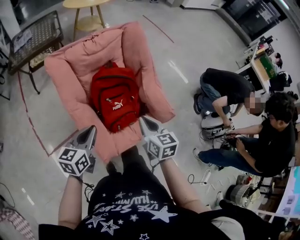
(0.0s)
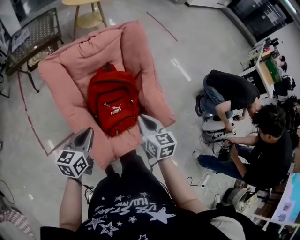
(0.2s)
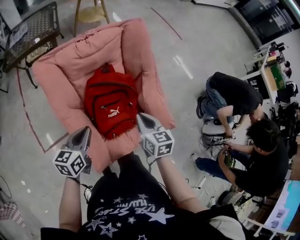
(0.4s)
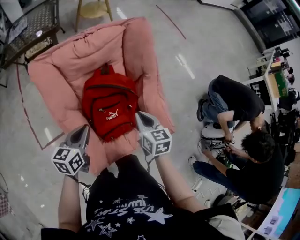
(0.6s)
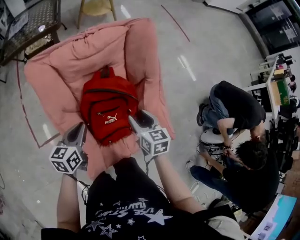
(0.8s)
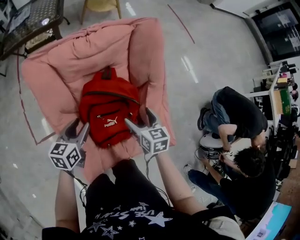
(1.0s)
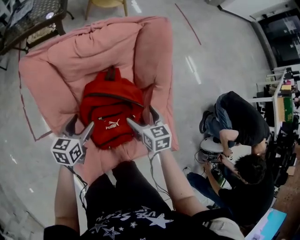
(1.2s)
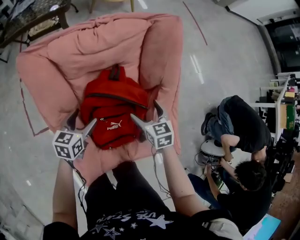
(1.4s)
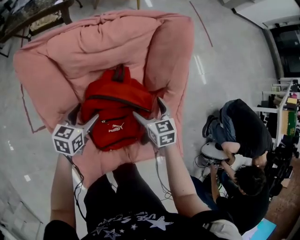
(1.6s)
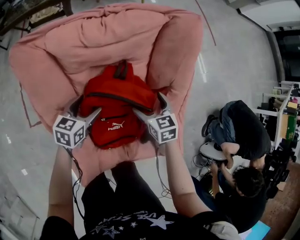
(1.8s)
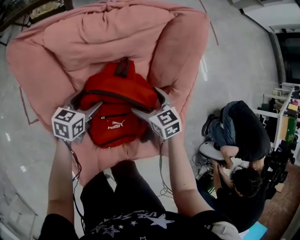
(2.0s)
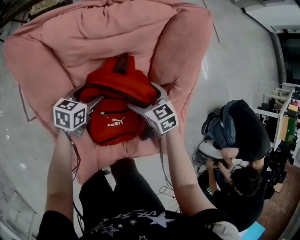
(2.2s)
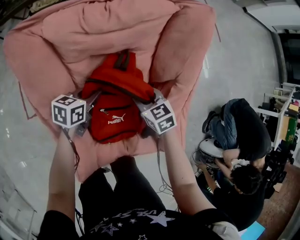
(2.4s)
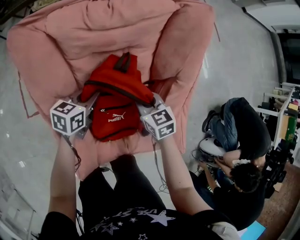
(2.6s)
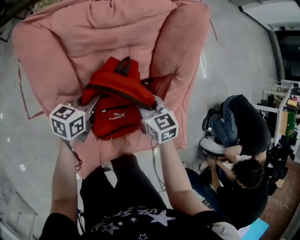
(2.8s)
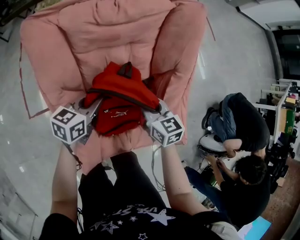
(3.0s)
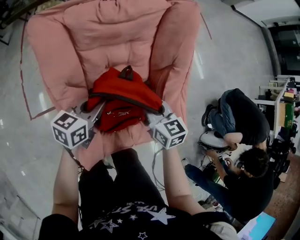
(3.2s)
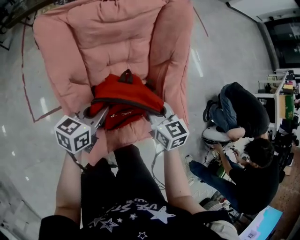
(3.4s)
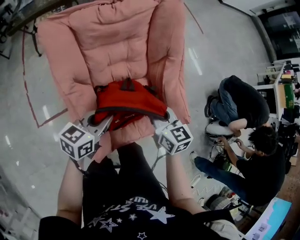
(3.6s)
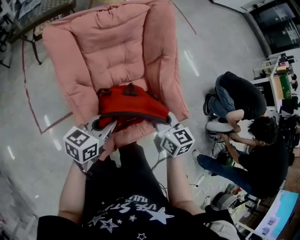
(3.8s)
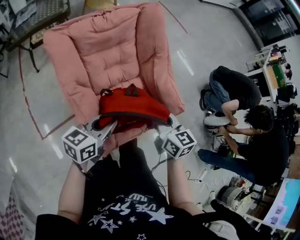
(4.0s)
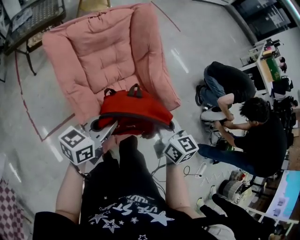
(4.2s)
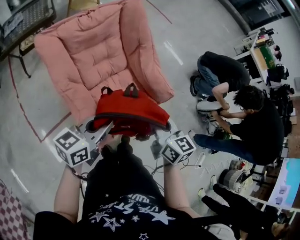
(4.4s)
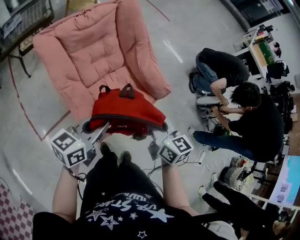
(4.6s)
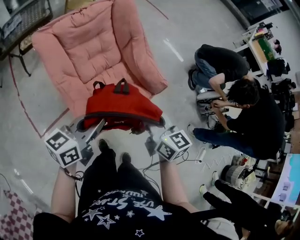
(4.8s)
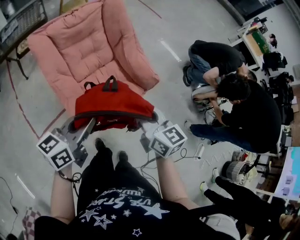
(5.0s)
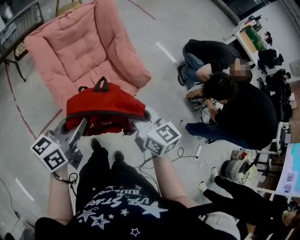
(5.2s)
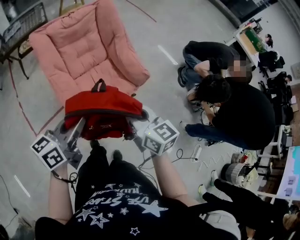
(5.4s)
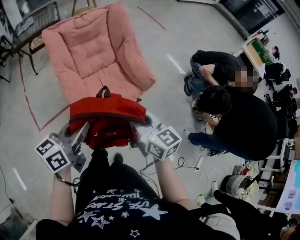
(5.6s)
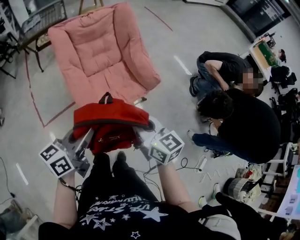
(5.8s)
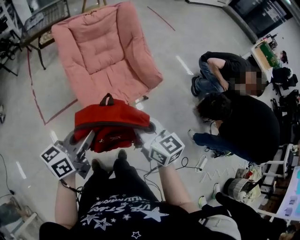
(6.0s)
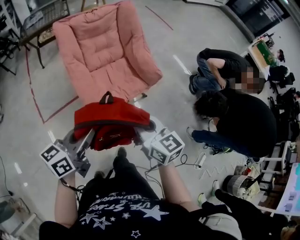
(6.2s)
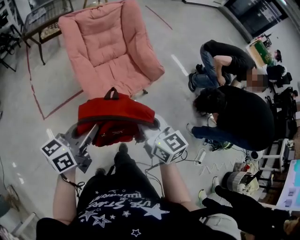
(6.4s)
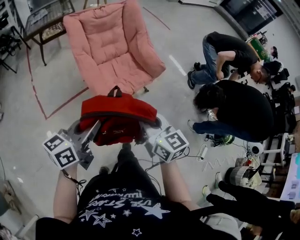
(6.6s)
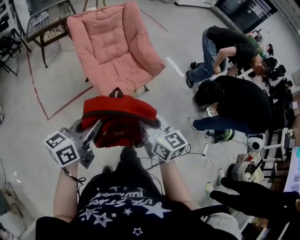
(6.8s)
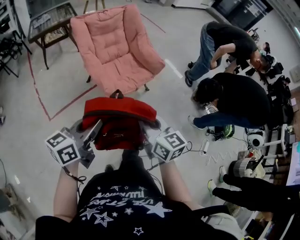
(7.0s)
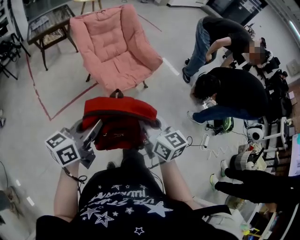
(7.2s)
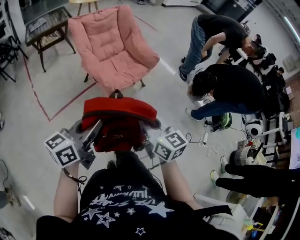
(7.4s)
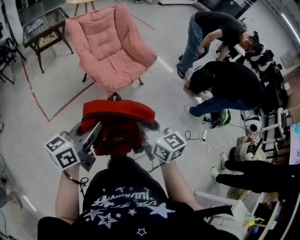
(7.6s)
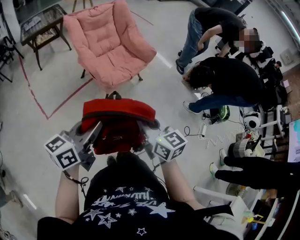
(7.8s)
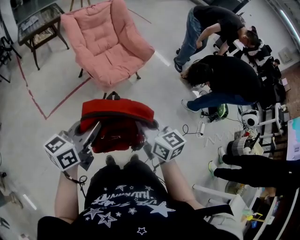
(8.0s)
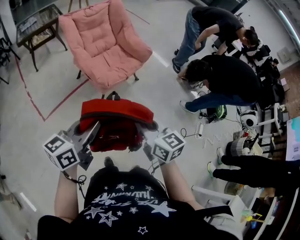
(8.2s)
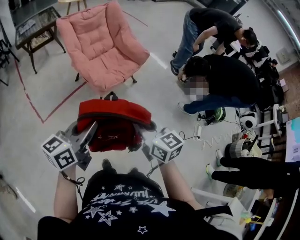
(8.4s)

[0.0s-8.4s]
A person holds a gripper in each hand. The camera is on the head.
0.0s to 1.4s: Both grippers move forward and downward, approximately 30 cm. The right gripper rotates some 30 degrees, and opens, while the left gripper opens up.
1.4s to 2.8s: The right gripper shifts some 5 cm to the left, reaches approximately 10 cm downward, then returns, and closes. The left gripper reaches approximately 10 cm downward, then returns, and closes its fingers.
2.8s to 4.2s: The left gripper changes place by approximately 35 cm, and rotates some 30 degrees. Meanwhile the right gripper ends up some 40 cm from where it was, and swivels about 40 degrees.
4.2s to 5.6s: The right gripper heads backward and to the right, covering about 20 cm, while the left gripper travels backward, to the right and upward by roughly 20 cm.
5.6s to 7.0s: The right gripper heads backward, covering approximately 25 cm. Meanwhile the left gripper travels backward and to the left by some 25 cm.
7.0s to 8.4s: The two grippers go approximately 10 cm backward.

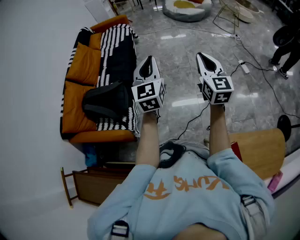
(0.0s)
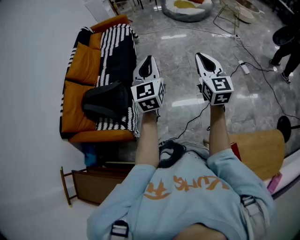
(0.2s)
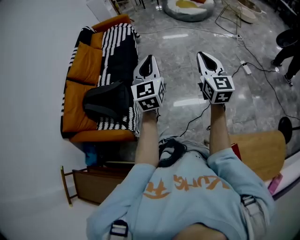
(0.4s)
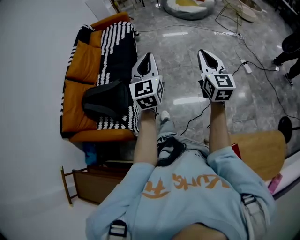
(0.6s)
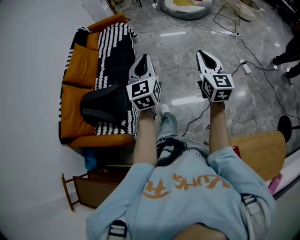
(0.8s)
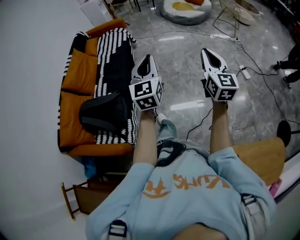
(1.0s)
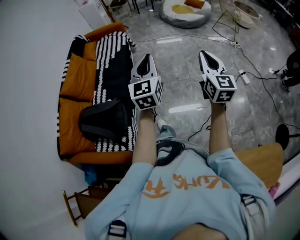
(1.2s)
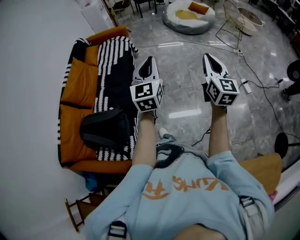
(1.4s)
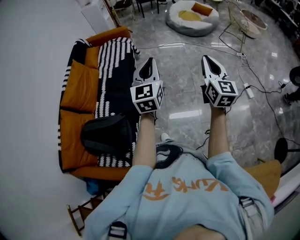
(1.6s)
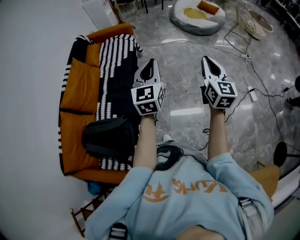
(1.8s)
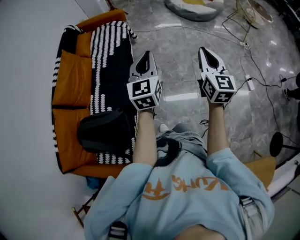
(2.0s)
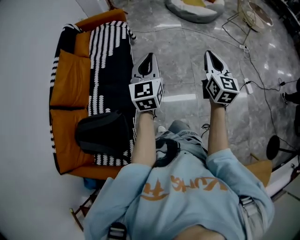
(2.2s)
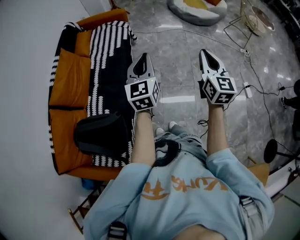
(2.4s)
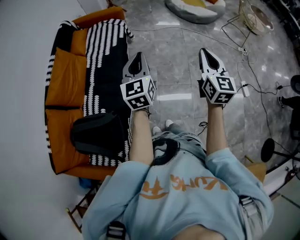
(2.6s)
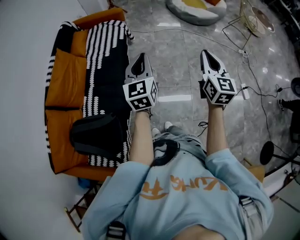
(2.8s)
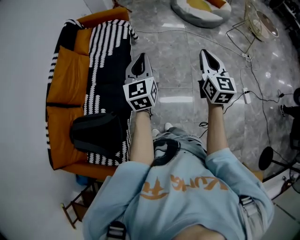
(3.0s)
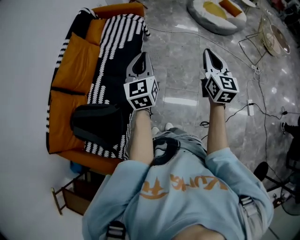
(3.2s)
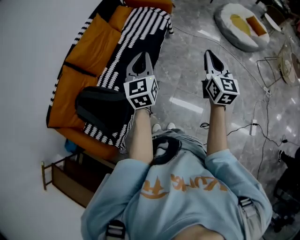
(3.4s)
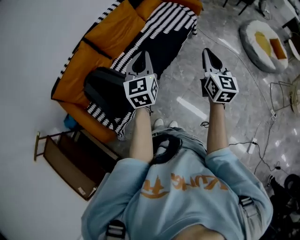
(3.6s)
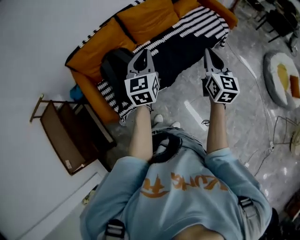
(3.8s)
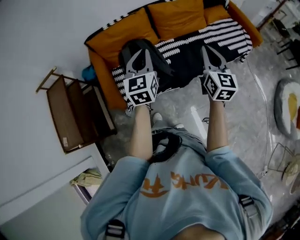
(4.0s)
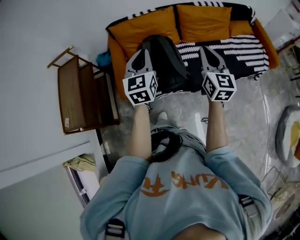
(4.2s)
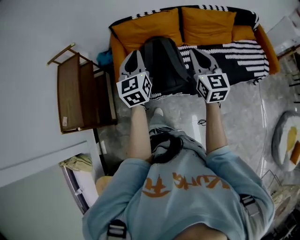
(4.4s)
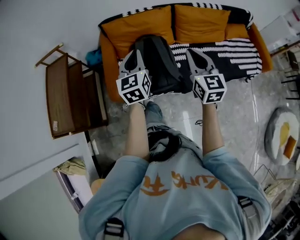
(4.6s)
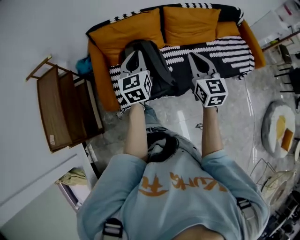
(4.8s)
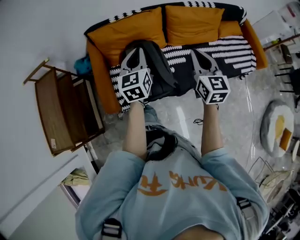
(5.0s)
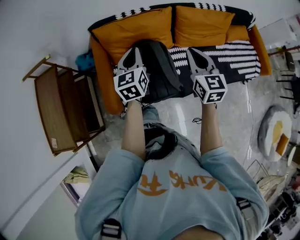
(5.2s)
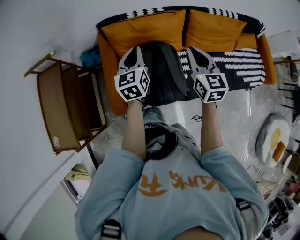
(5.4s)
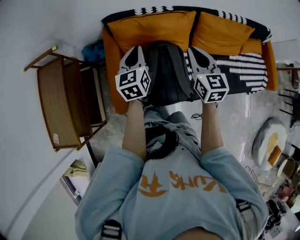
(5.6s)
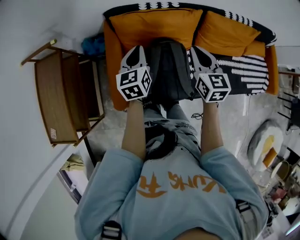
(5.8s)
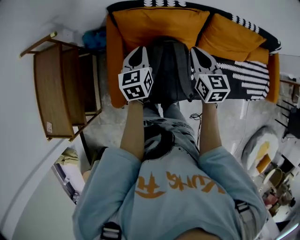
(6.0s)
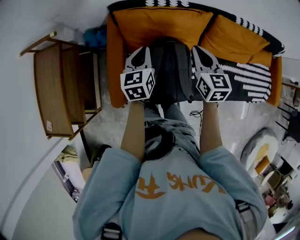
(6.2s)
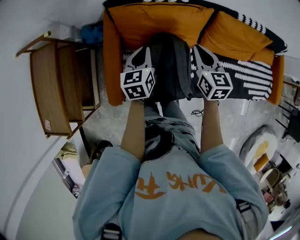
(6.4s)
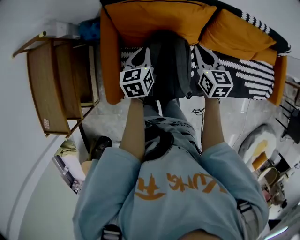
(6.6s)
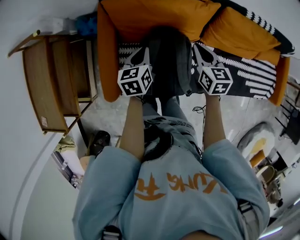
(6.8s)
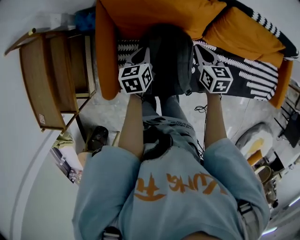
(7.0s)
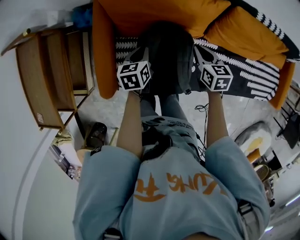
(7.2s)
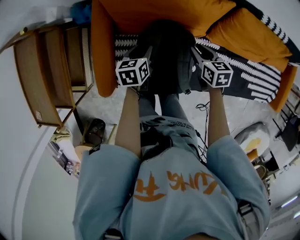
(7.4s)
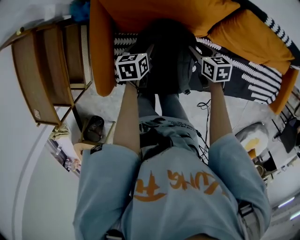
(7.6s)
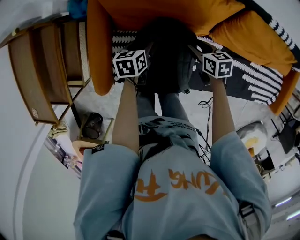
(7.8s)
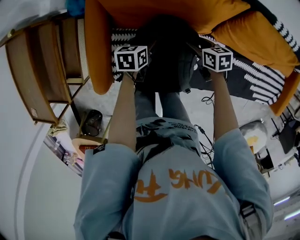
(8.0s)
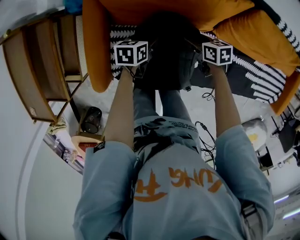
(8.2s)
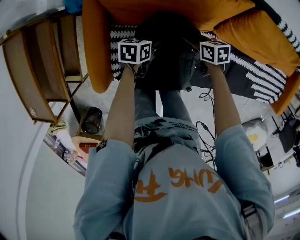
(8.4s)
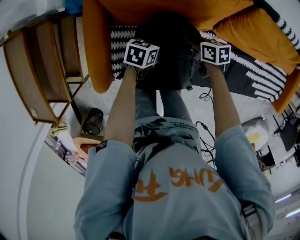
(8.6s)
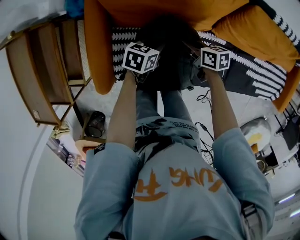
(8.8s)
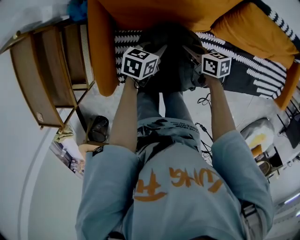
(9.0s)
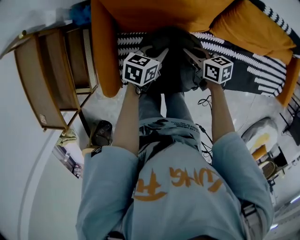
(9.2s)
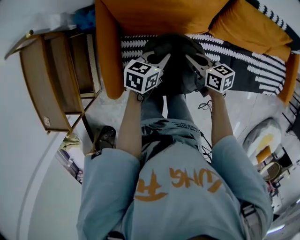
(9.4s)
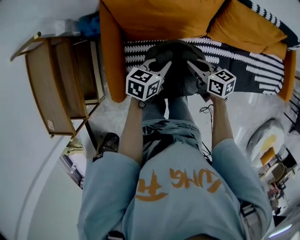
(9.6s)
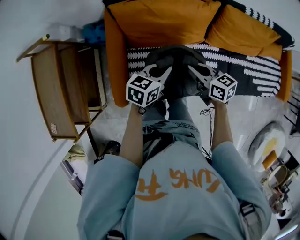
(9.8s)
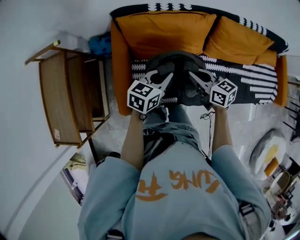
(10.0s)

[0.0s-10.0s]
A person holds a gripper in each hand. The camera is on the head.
0.0s to 1.4s: The two grippers go roughly 25 cm forward.
1.4s to 2.8s: Both grippers move forward, about 25 cm.
2.8s to 4.2s: The two grippers travel together, approximately 50 cm. The right gripper changes its angle by about 80 degrees; the left gripper rotates some 80 degrees.
4.2s to 5.8s: The right gripper shifts roughly 35 cm forward and to the left, and rotates some 20 degrees; the left gripper shifts about 35 cm forward, downward and to the left, and changes its angle by approximately 20 degrees.
5.8s to 7.2s: Both grippers move downward, approximately 25 cm. The right gripper rotates roughly 30 degrees. The left gripper rotates about 30 degrees.
7.2s to 8.6s: The grippers both shift downward by some 15 cm. The right gripper changes its angle by approximately 30 degrees, and opens, then closes once more, while the left gripper turns by roughly 30 degrees, and opens, then closes again.
8.6s to 10.0s: The two grippers go roughly 25 cm upward. The left gripper turns by roughly 30 degrees. Meanwhile the right gripper rotates roughly 30 degrees.

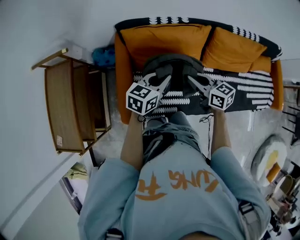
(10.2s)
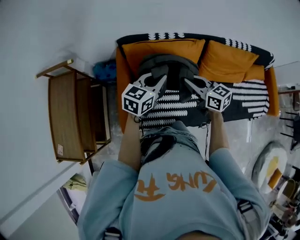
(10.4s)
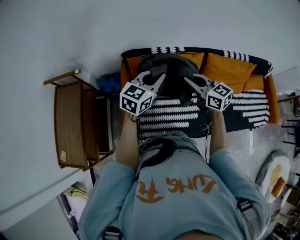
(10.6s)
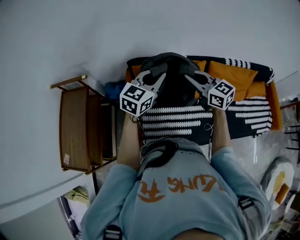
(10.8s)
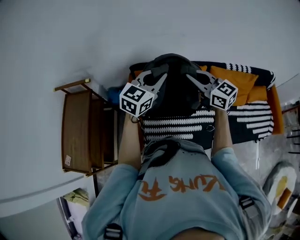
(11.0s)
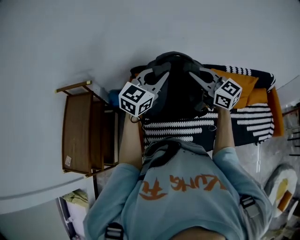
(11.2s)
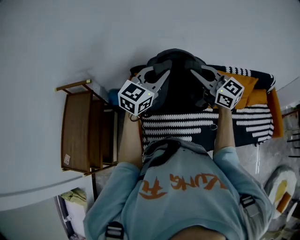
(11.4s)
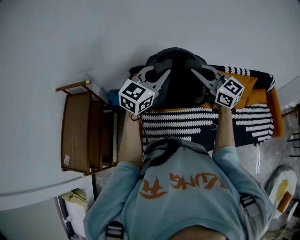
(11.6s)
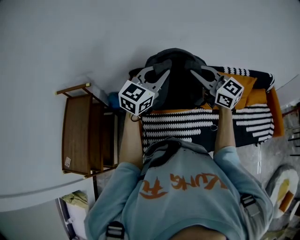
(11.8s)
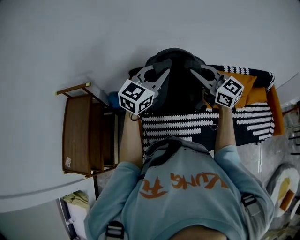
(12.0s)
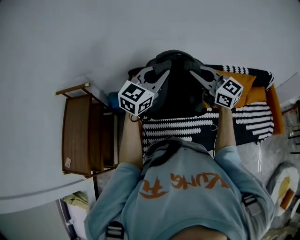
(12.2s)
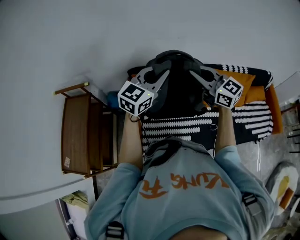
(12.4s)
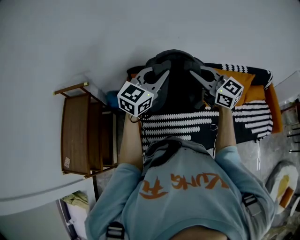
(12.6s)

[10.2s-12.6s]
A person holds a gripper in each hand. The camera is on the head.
10.2s to 11.4s: Both grippers move upward, approximately 25 cm. The left gripper turns by some 40 degrees. Meanwhile the right gripper changes its angle by approximately 40 degrees.
11.4s to 12.6s: The grippers stay close to where they were, moving slightly.

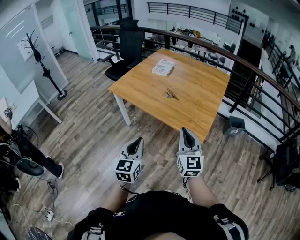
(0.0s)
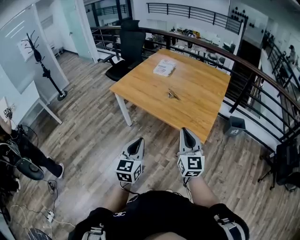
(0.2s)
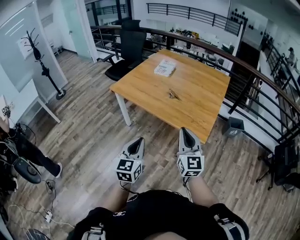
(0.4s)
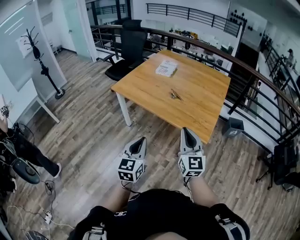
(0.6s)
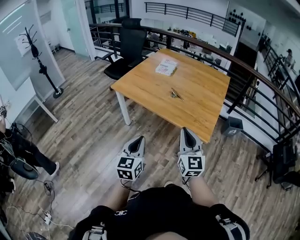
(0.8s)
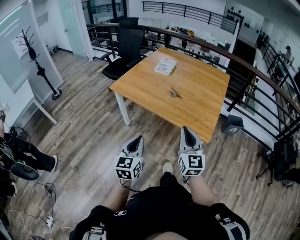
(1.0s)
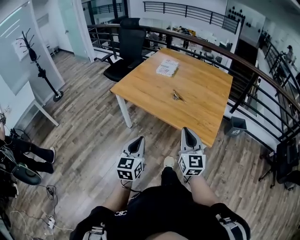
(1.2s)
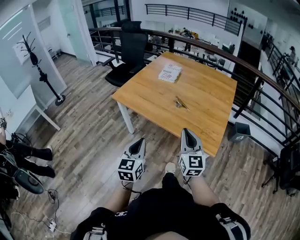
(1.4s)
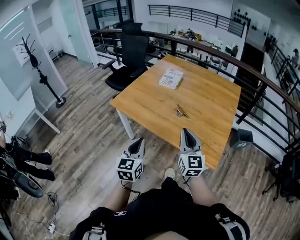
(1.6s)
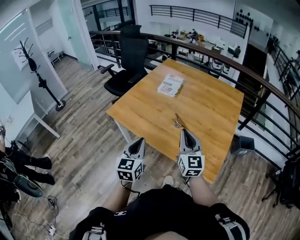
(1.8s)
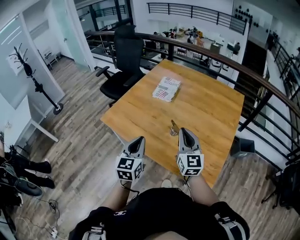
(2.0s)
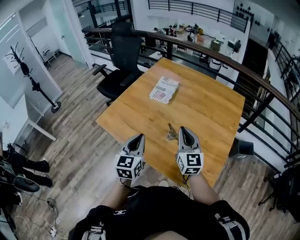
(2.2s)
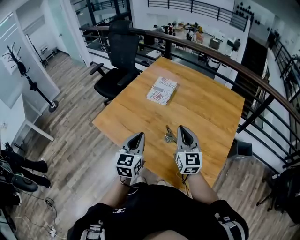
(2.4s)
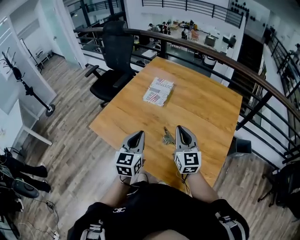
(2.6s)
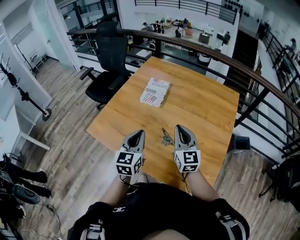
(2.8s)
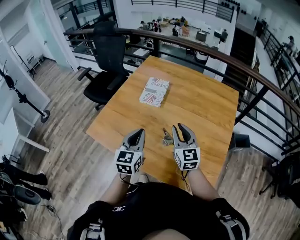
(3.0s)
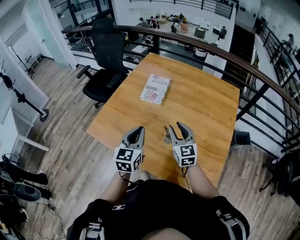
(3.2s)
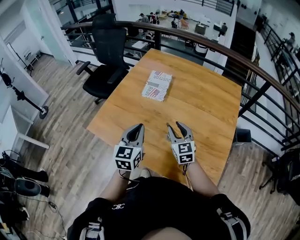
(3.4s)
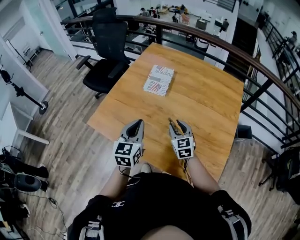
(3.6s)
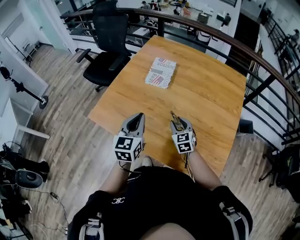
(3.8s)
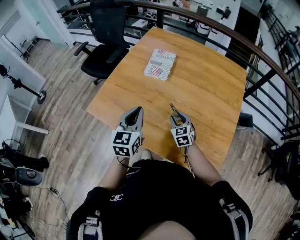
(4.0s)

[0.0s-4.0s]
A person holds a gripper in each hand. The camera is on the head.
0.0s to 1.4s: The grippers both shift forward and to the left by roughly 15 cm.
1.4s to 2.6s: Both grippers are carried forward, about 50 cm.
2.6s to 4.0s: The left gripper heads to the left and forward, covering roughly 10 cm. The right gripper is displaced downward by about 25 cm, tilts its fingers approximately 30 degrees downward, and opens its fingers.
